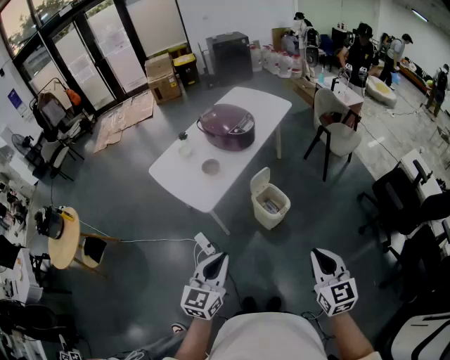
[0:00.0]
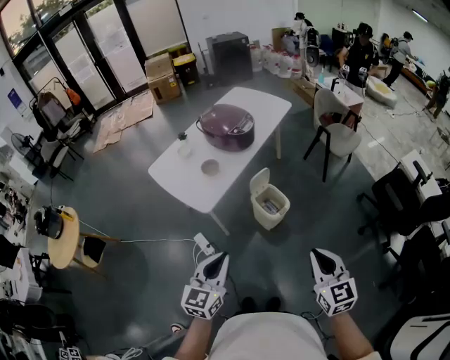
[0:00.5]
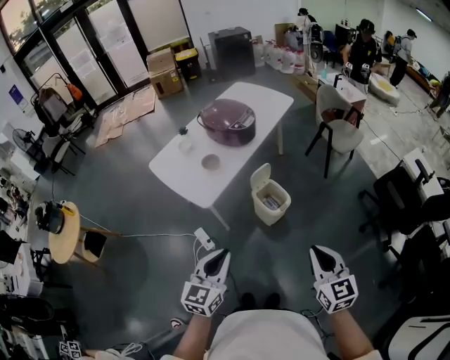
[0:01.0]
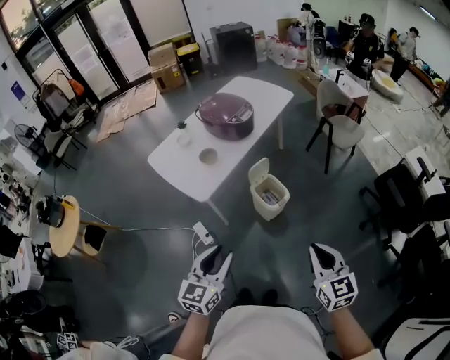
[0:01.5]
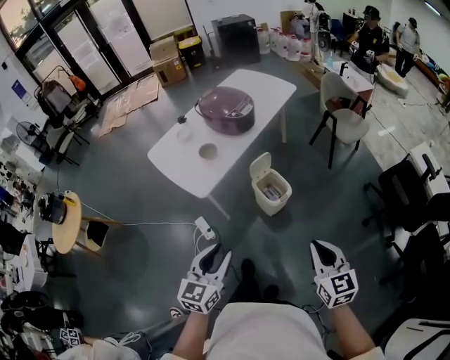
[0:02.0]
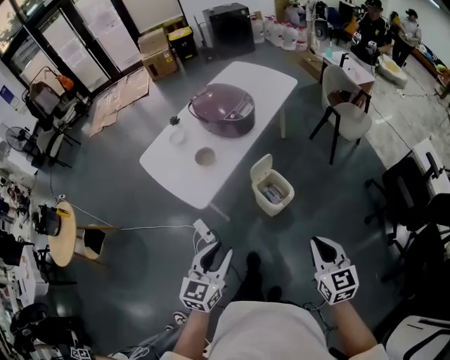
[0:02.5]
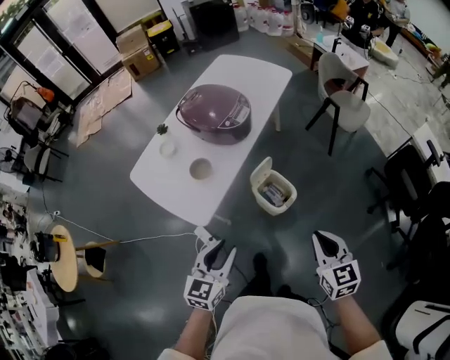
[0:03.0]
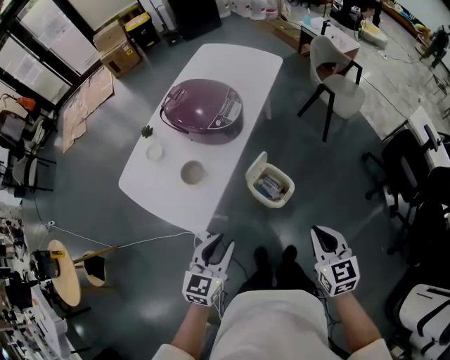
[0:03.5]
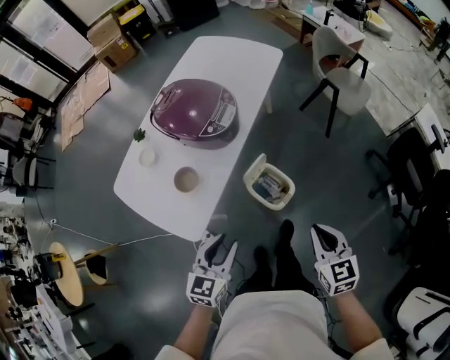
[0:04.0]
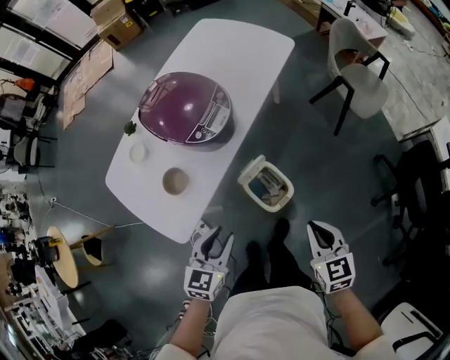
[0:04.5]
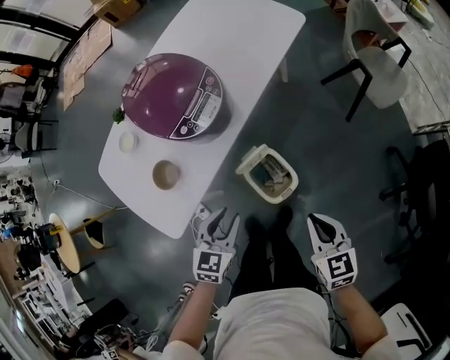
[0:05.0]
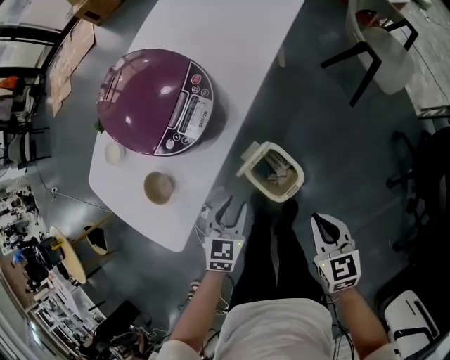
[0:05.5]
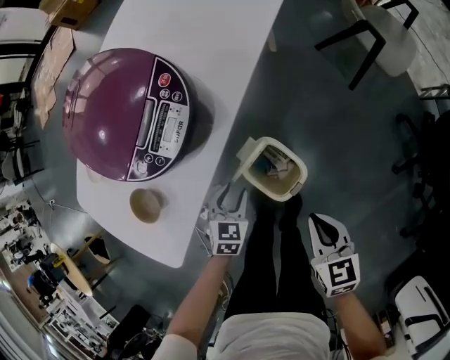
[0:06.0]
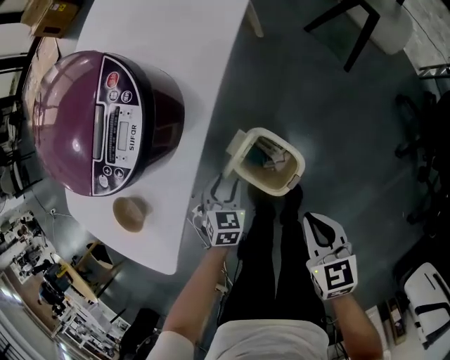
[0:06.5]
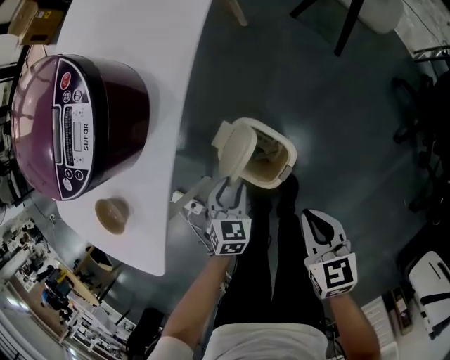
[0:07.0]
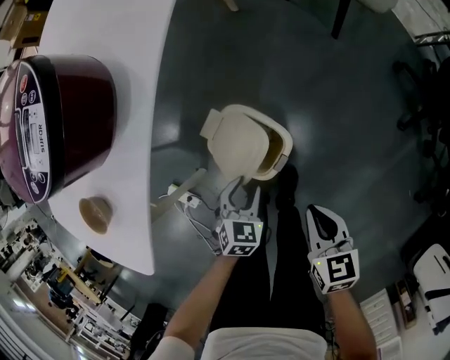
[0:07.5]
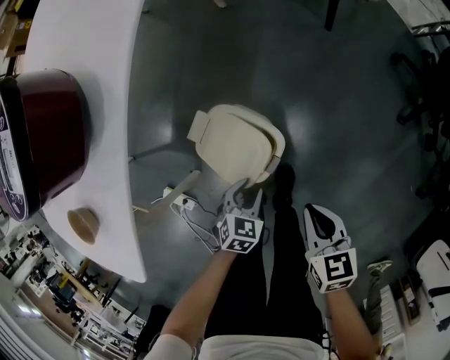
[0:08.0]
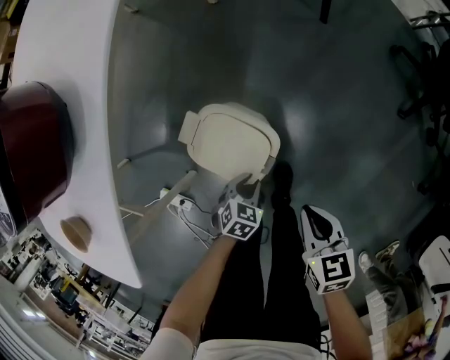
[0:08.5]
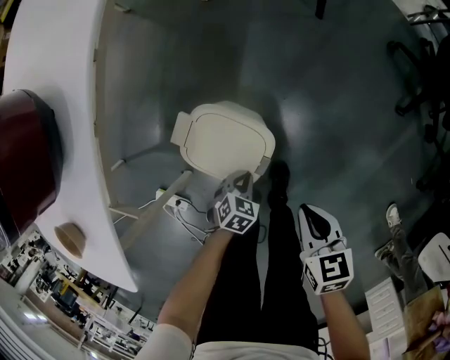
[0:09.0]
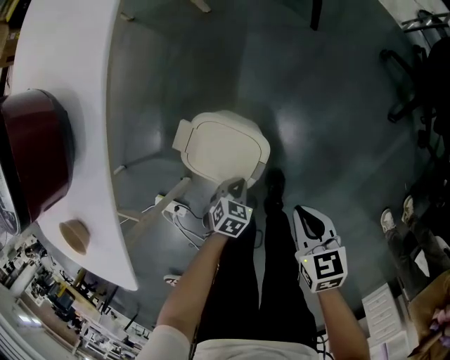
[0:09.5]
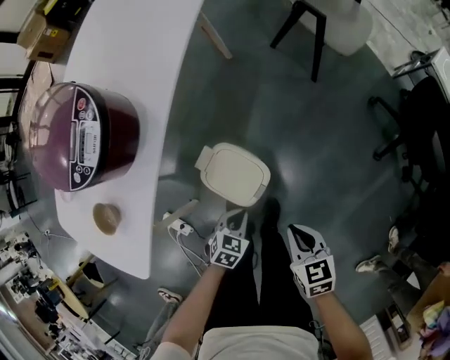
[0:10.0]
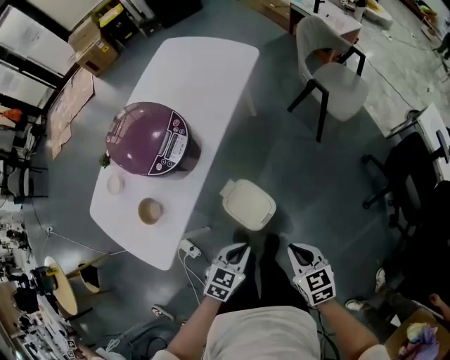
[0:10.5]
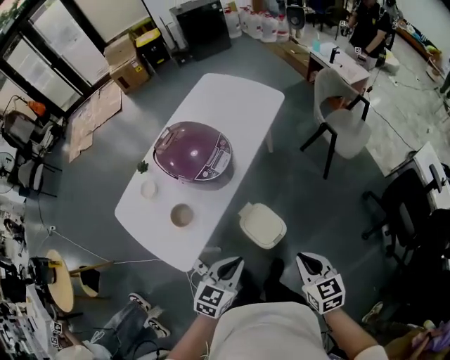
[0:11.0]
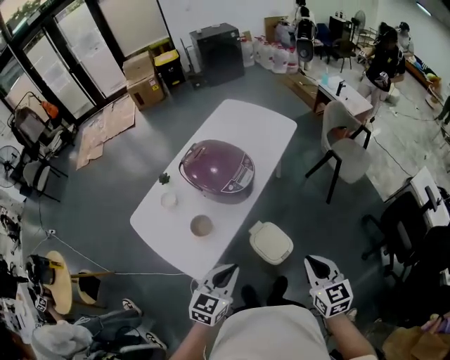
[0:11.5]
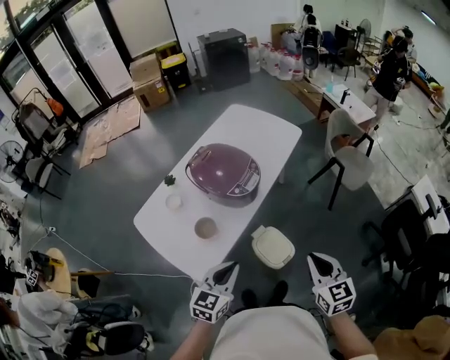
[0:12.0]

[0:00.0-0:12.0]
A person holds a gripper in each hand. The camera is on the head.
0:00.0 to 0:02.0: The right gripper heads to the right, covering roughly 5 cm; the left gripper moves about 5 cm, and opens its fingers.
0:02.0 to 0:04.0: Both grippers move forward, approximately 35 cm.
0:04.0 to 0:06.0: The two grippers go roughly 35 cm downward and forward. The left gripper swivels about 30 degrees.
0:06.0 to 0:08.0: The right gripper heads downward, backward and to the right, covering approximately 20 cm. The left gripper travels downward, to the right and backward by approximately 25 cm, and swivels some 30 degrees.
0:08.0 to 0:10.0: Both grippers travel together upward, roughly 10 cm. The left gripper closes its fingers.
0:10.0 to 0:12.0: The right gripper shifts approximately 40 cm upward, and turns by about 30 degrees; the left gripper travels upward and to the left by roughly 60 cm, and angles its fingers upward, by approximately 40 degrees.

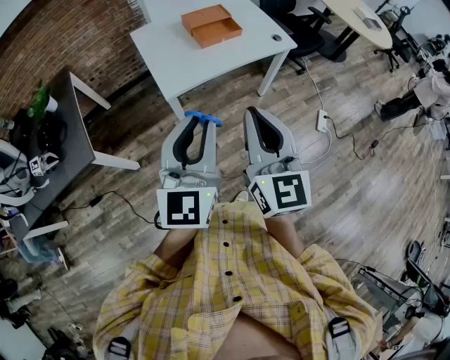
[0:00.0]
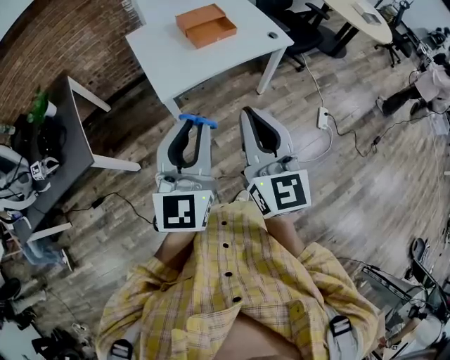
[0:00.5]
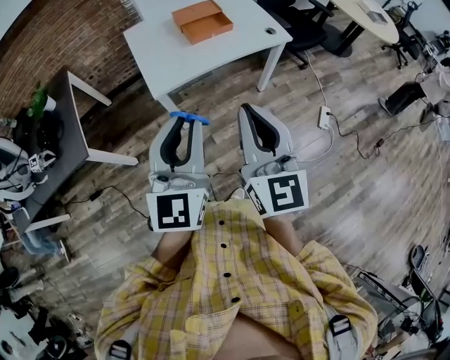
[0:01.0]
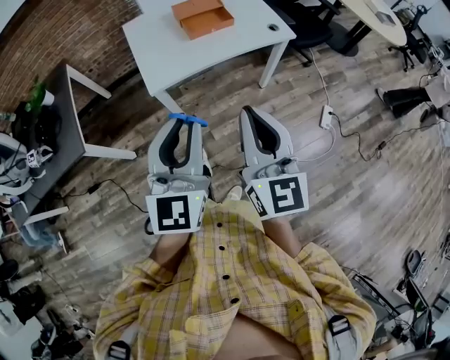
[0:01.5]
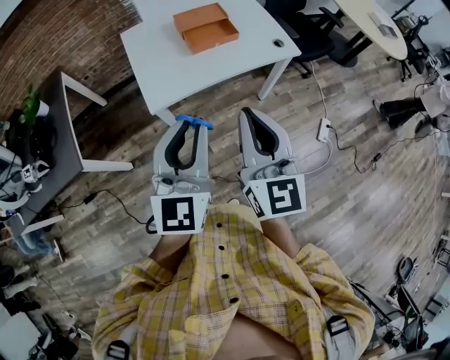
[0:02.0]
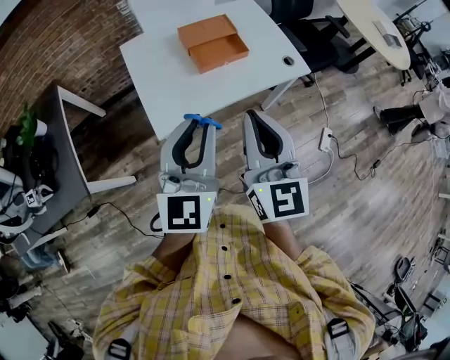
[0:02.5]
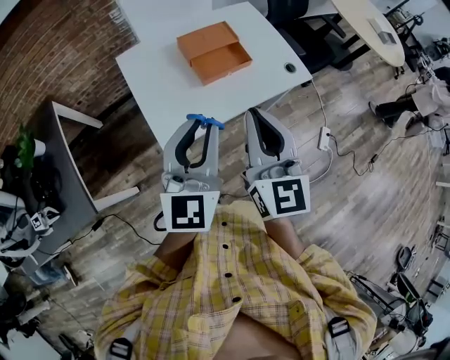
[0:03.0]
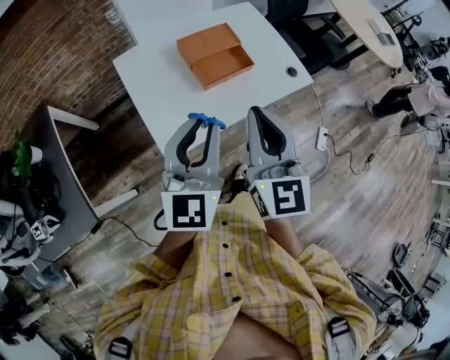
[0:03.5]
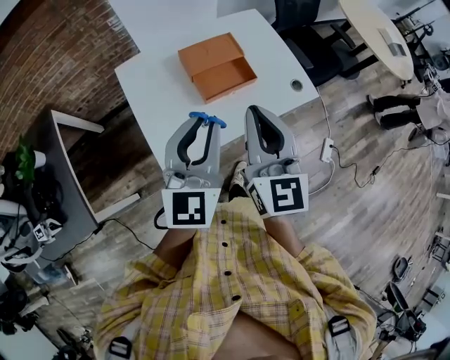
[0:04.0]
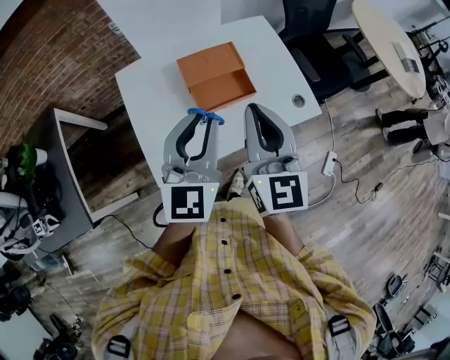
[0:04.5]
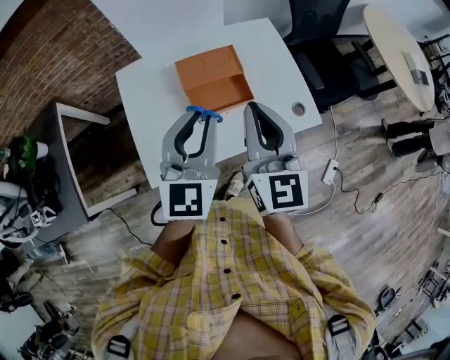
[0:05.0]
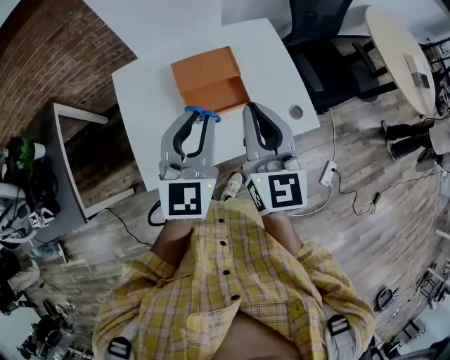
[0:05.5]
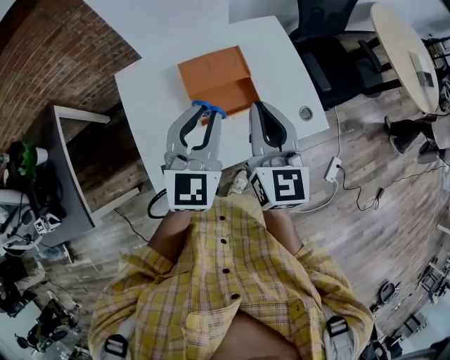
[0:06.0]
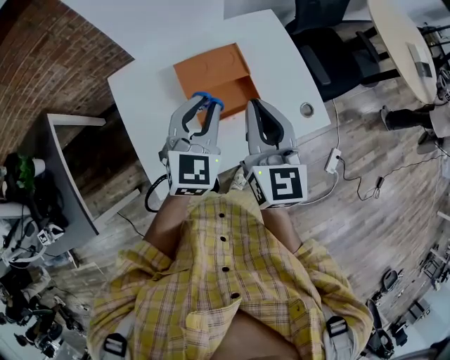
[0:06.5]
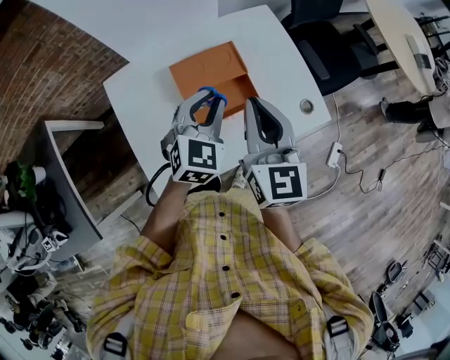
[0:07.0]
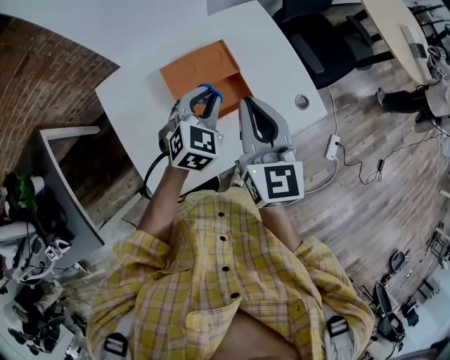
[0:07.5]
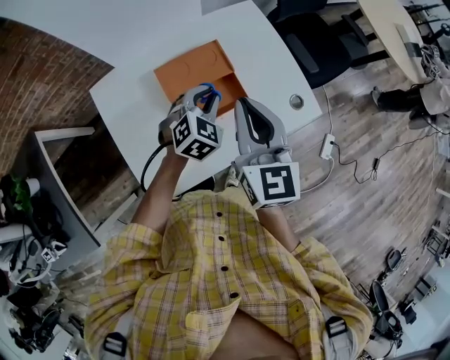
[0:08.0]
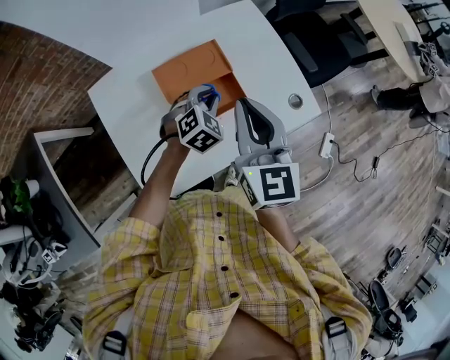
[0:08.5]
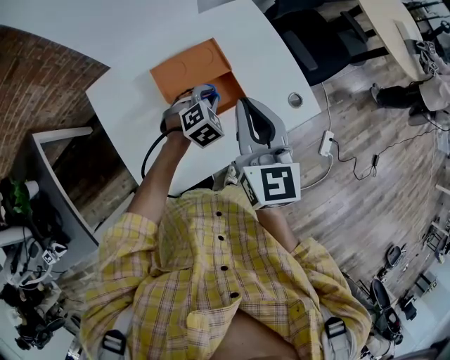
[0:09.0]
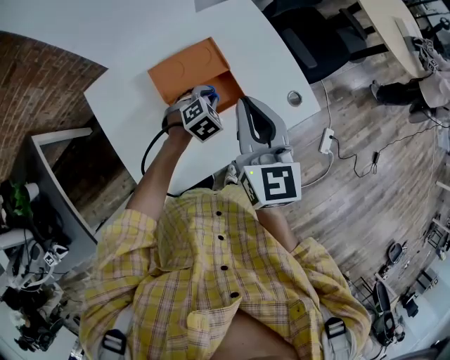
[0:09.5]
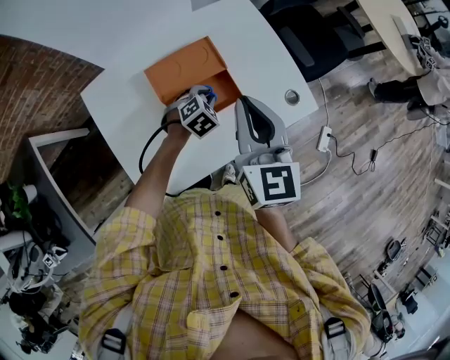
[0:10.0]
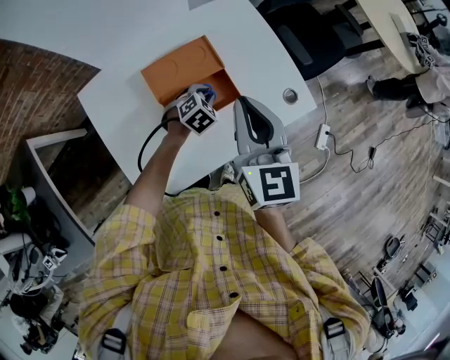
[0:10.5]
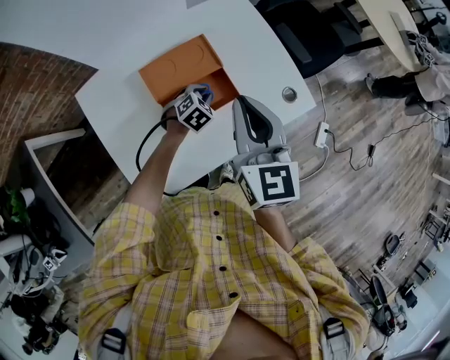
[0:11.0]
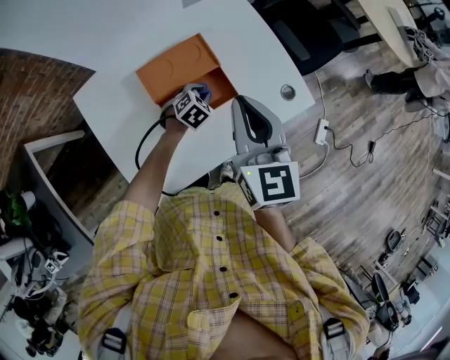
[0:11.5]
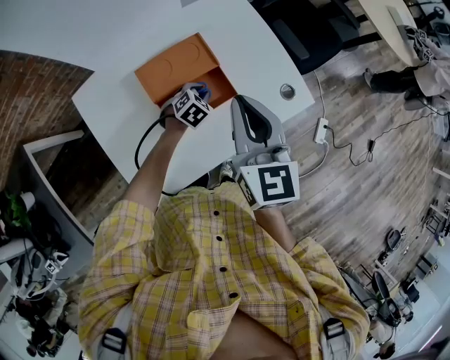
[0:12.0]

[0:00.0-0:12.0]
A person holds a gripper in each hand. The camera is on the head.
0:00.0 to 0:02.0: Both grippers travel together forward and to the right, about 15 cm.
0:02.0 to 0:04.0: Both grippers move forward, about 30 cm.
0:04.0 to 0:06.0: The grippers both shift forward by about 15 cm.
0:06.0 to 0:08.0: The left gripper moves downward and forward, about 20 cm, and tips its fingers downward by approximately 30 degrees; the right gripper moves about 5 cm.
0:08.0 to 0:10.0: The left gripper heads downward, covering approximately 15 cm.
0:10.0 to 0:12.0: The left gripper travels downward by approximately 5 cm.

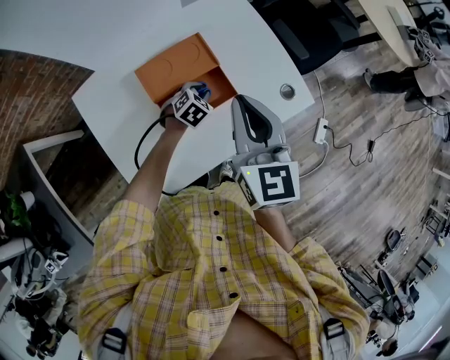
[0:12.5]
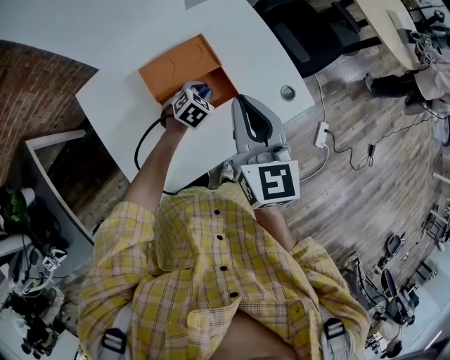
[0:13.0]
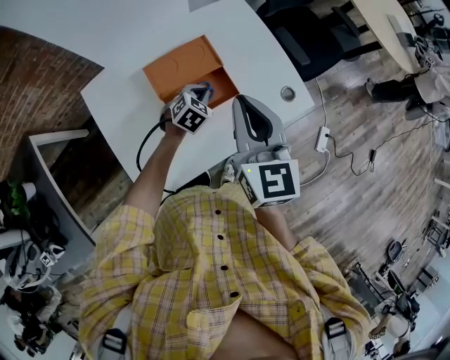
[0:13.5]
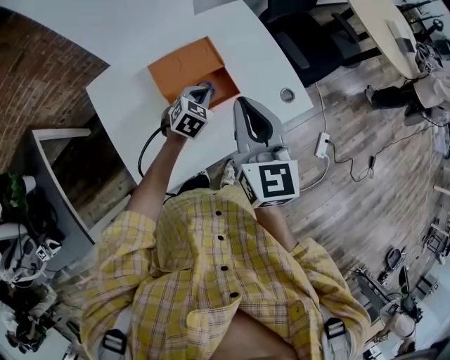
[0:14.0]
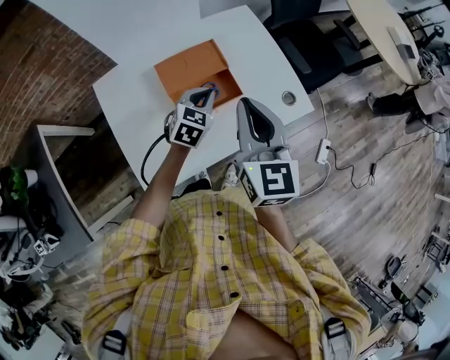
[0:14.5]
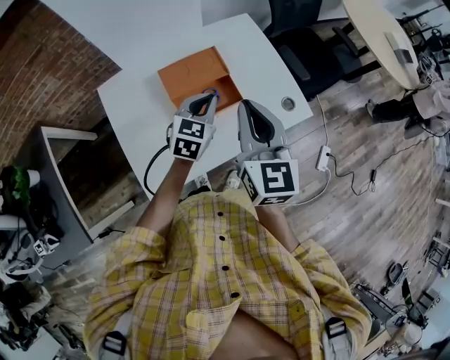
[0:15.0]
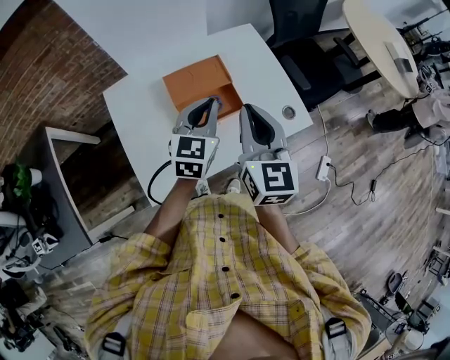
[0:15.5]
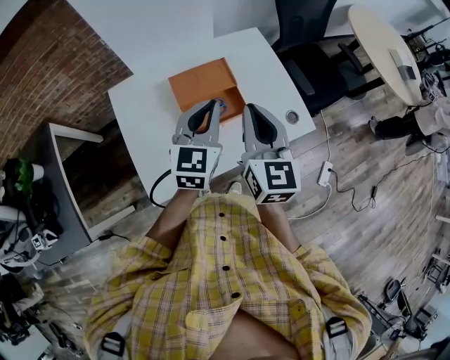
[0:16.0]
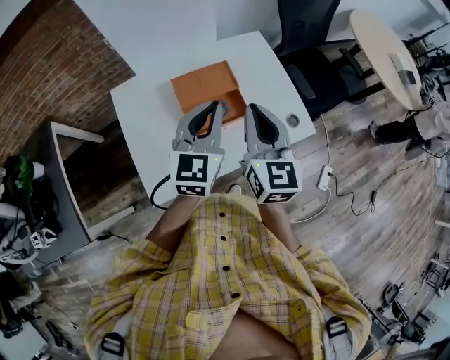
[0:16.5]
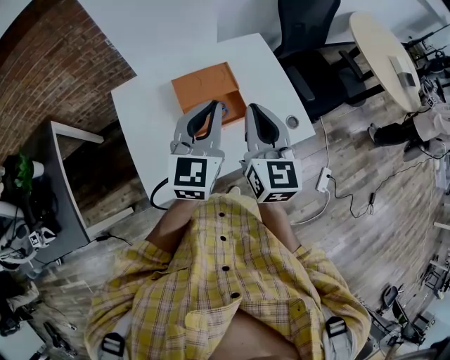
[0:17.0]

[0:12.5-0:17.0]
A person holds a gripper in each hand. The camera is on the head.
0:12.5 to 0:14.5: The left gripper travels upward by some 15 cm, and changes its angle by some 30 degrees, while the right gripper goes roughly 5 cm backward.
0:14.5 to 0:17.0: The left gripper is displaced upward by roughly 20 cm, and tips its fingers upward by some 30 degrees.
